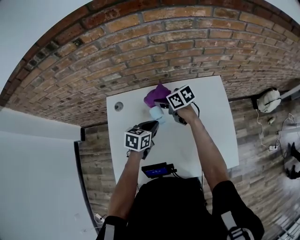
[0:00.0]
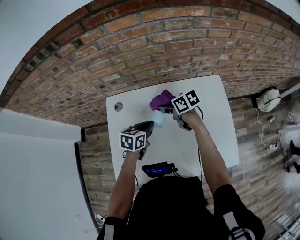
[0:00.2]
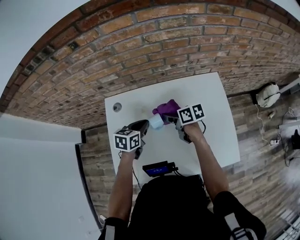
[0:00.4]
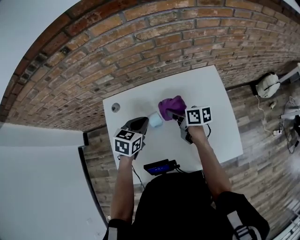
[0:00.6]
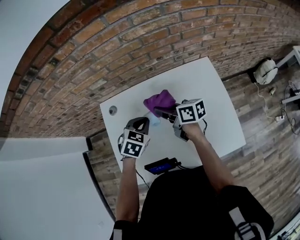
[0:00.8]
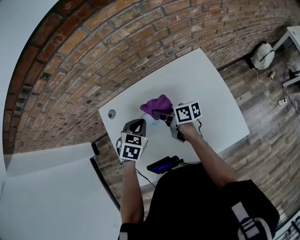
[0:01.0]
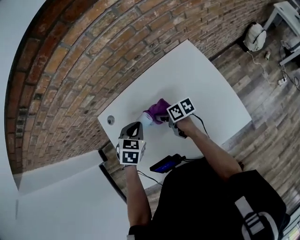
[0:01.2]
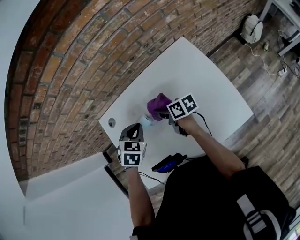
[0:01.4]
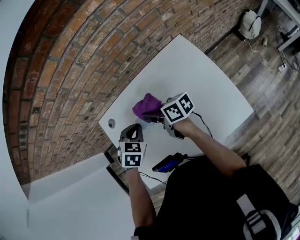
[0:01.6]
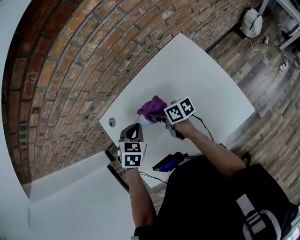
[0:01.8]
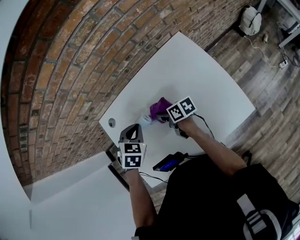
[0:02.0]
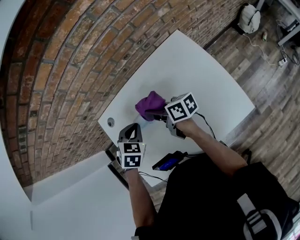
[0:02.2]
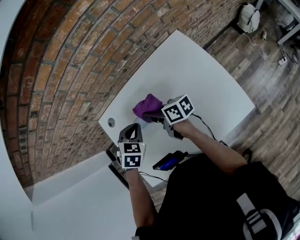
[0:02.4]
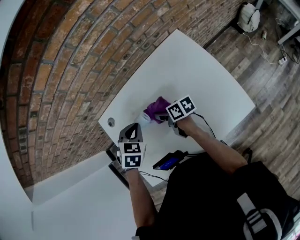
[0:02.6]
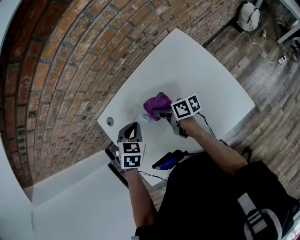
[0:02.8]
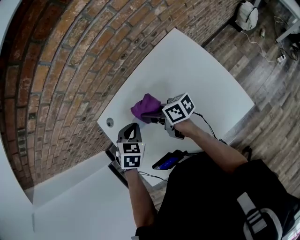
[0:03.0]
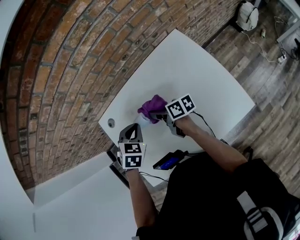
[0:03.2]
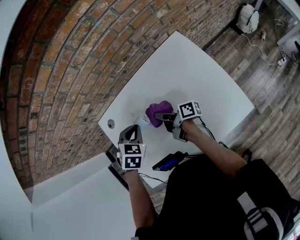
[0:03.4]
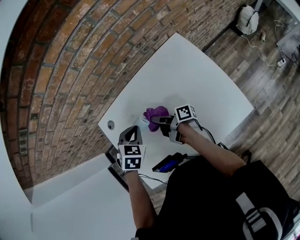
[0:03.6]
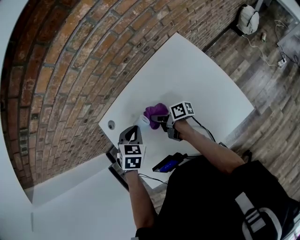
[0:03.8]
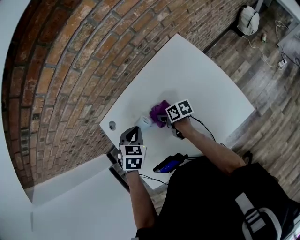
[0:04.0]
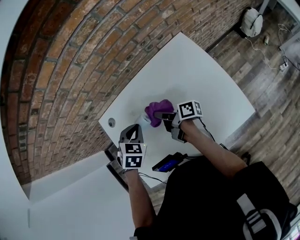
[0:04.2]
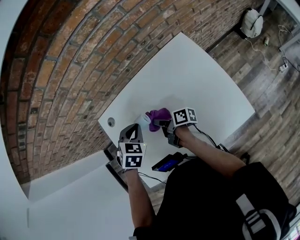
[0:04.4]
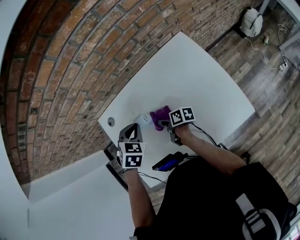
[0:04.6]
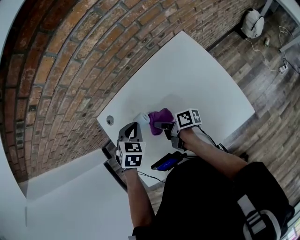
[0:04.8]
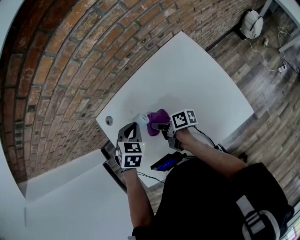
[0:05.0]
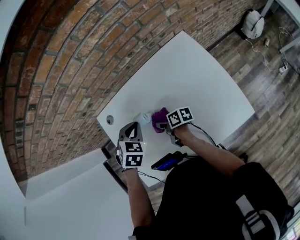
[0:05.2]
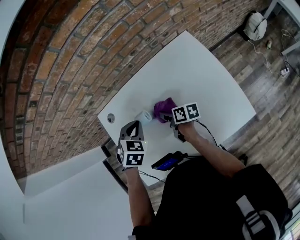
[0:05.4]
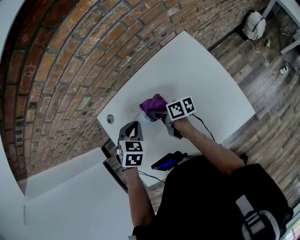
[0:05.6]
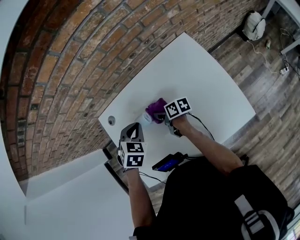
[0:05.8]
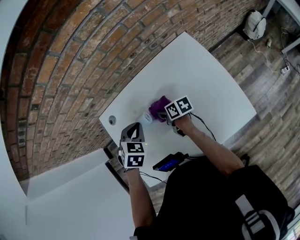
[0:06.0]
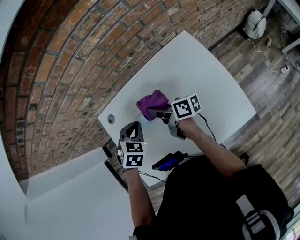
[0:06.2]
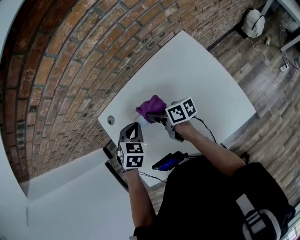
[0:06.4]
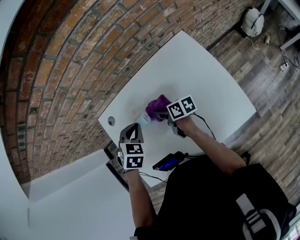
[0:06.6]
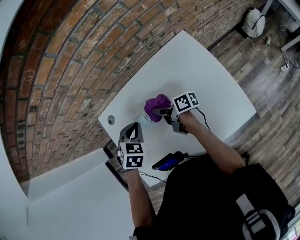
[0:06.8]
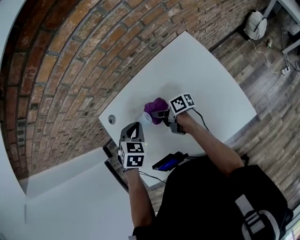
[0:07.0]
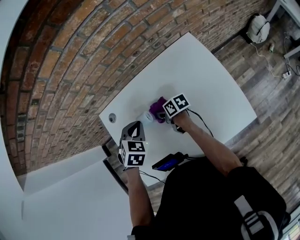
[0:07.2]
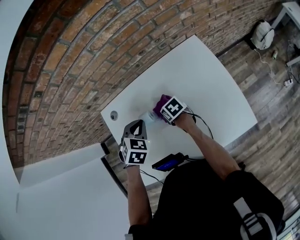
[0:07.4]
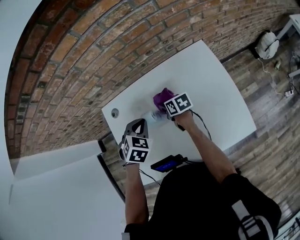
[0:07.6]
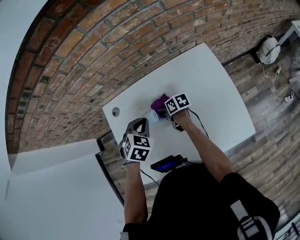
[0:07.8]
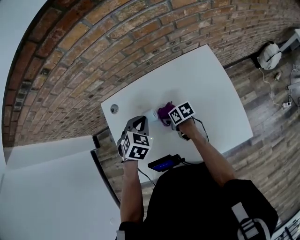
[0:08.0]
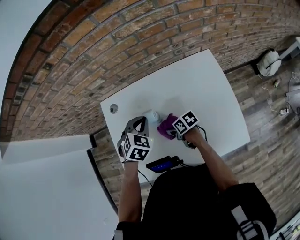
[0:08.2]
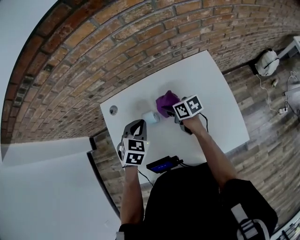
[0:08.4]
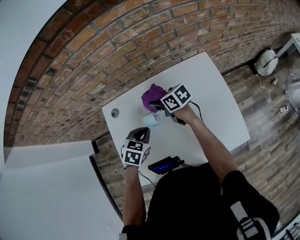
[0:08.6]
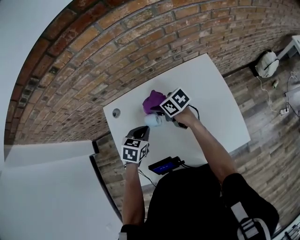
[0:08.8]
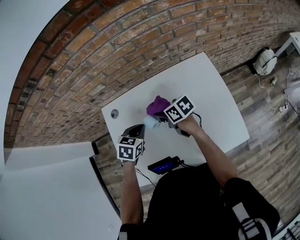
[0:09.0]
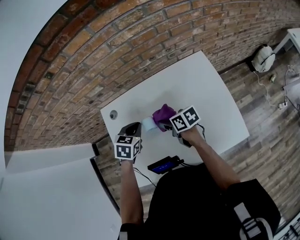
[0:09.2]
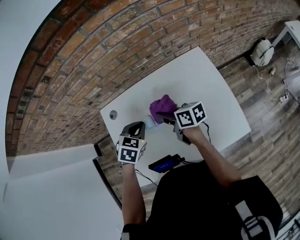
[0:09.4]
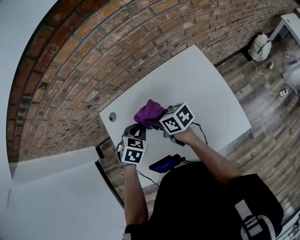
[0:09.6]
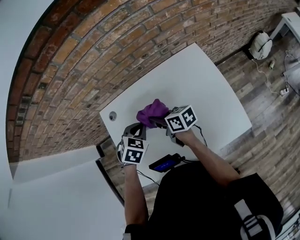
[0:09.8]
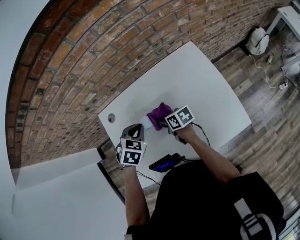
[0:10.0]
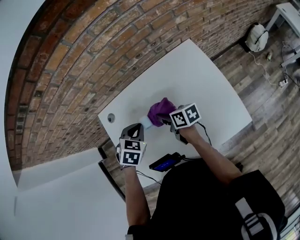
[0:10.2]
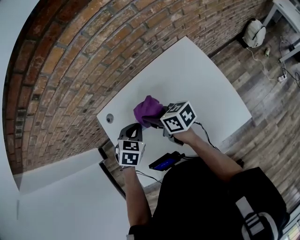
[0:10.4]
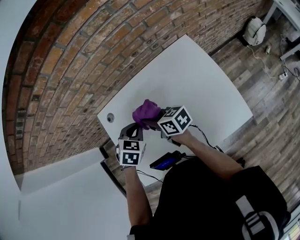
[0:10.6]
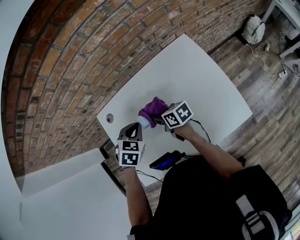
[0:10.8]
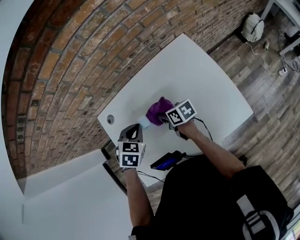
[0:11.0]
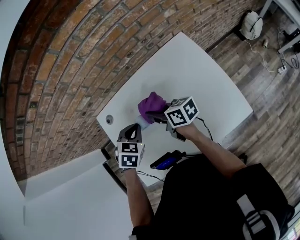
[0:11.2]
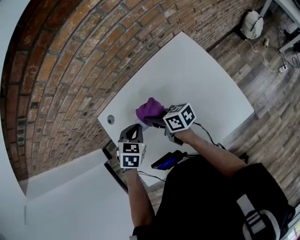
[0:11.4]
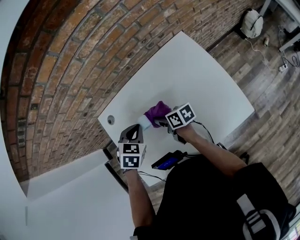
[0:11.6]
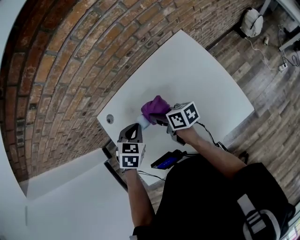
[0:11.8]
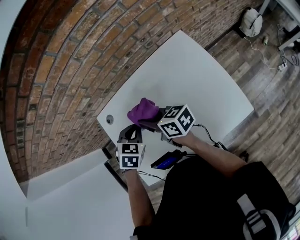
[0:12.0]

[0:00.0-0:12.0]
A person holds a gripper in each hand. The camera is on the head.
0:00.0 to 0:01.6: The right gripper swings up and down, about 10 cm each way, with 2 reversals, and rotates approximately 40 degrees; the left gripper turns by some 50 degrees.
0:01.6 to 0:03.0: The right gripper swings up and down, roughly 10 cm each way, with 3 reversals.
0:03.0 to 0:04.4: The right gripper travels downward by roughly 10 cm, and changes its angle by about 30 degrees.
0:04.4 to 0:06.0: The right gripper goes up and down, roughly 10 cm each way, reversing 4 times, and swivels about 40 degrees.
0:06.0 to 0:07.6: The right gripper moves some 10 cm upward and comes back.
0:07.6 to 0:09.0: The left gripper swivels roughly 20 degrees, while the right gripper swings forward and backward, roughly 15 cm each way, with 2 reversals.
0:09.0 to 0:10.4: The left gripper swivels about 20 degrees. The right gripper swings up and down, approximately 10 cm each way, with 2 reversals, and changes its angle by about 20 degrees.
0:10.4 to 0:12.0: The right gripper goes up and down, some 15 cm each way, reversing 3 times.

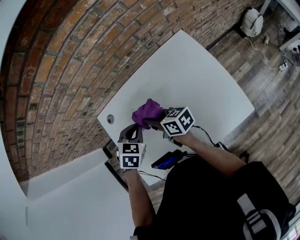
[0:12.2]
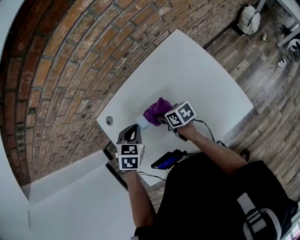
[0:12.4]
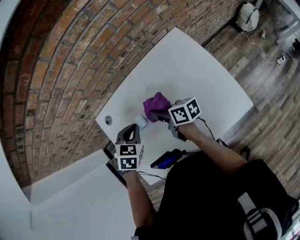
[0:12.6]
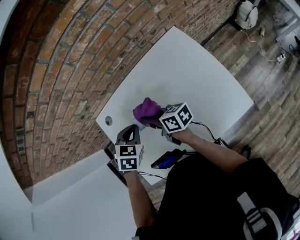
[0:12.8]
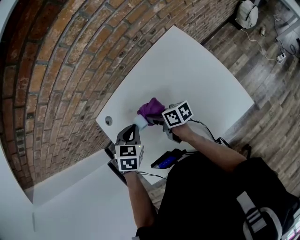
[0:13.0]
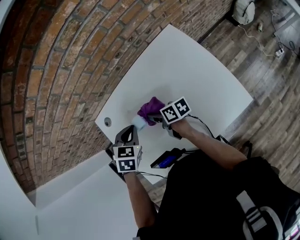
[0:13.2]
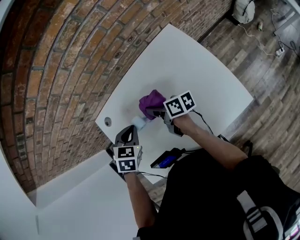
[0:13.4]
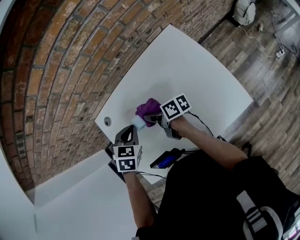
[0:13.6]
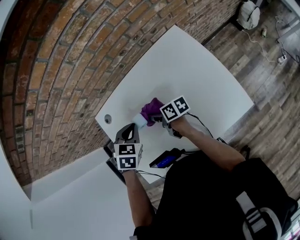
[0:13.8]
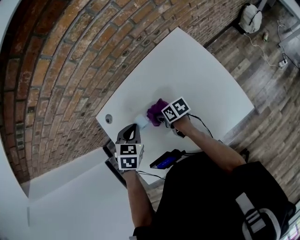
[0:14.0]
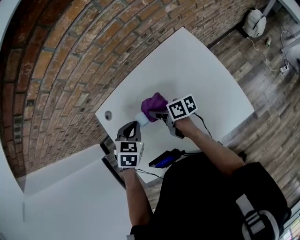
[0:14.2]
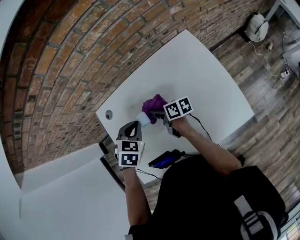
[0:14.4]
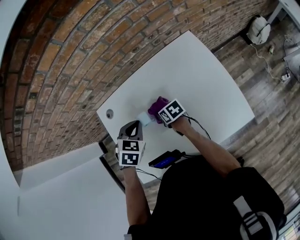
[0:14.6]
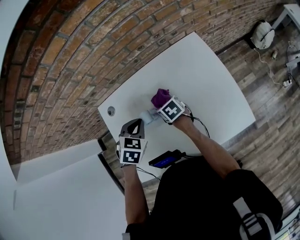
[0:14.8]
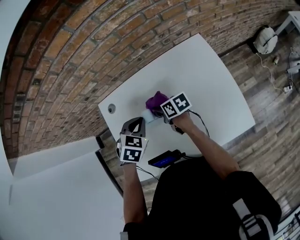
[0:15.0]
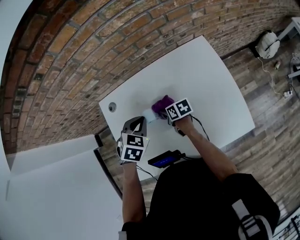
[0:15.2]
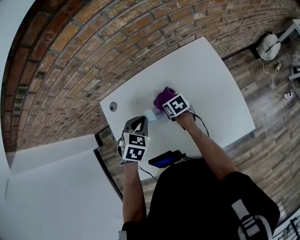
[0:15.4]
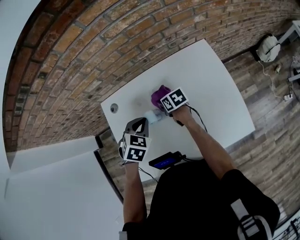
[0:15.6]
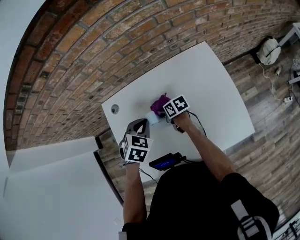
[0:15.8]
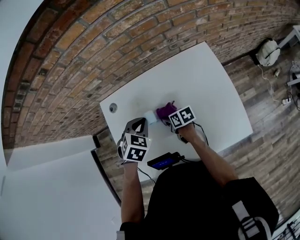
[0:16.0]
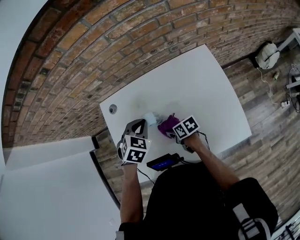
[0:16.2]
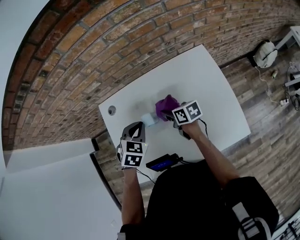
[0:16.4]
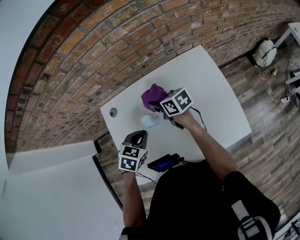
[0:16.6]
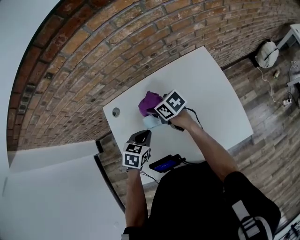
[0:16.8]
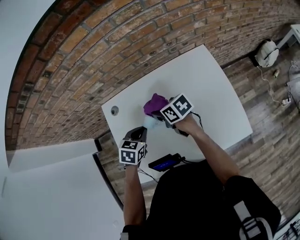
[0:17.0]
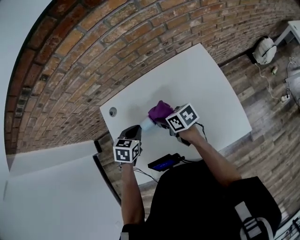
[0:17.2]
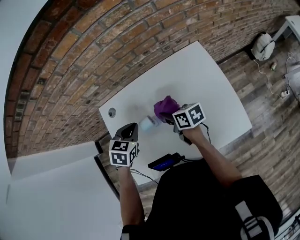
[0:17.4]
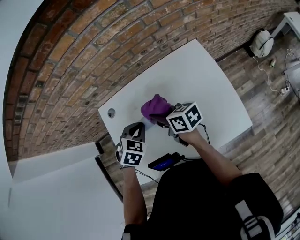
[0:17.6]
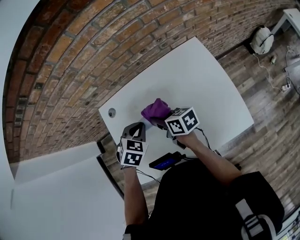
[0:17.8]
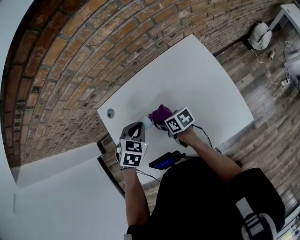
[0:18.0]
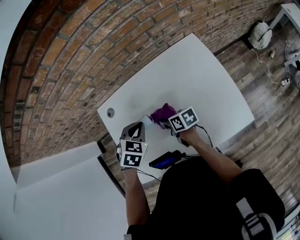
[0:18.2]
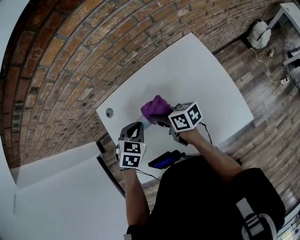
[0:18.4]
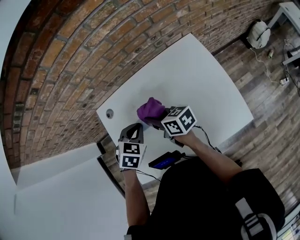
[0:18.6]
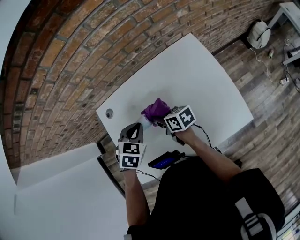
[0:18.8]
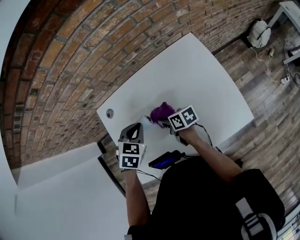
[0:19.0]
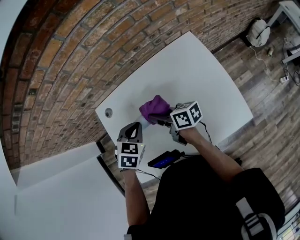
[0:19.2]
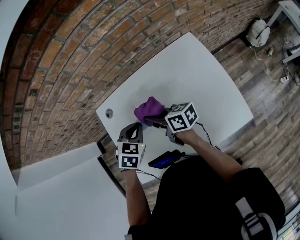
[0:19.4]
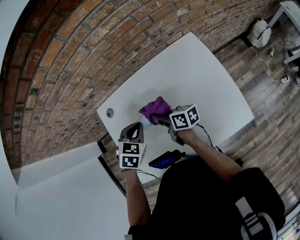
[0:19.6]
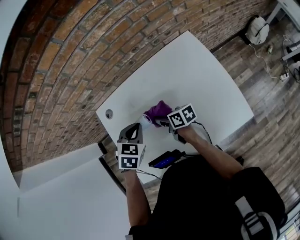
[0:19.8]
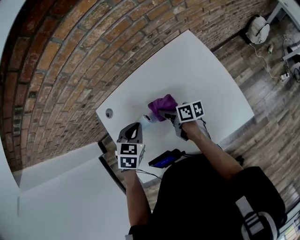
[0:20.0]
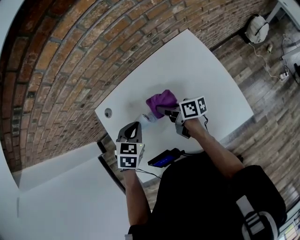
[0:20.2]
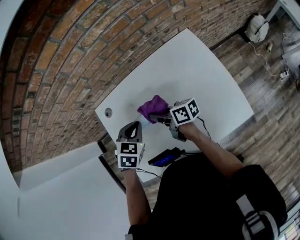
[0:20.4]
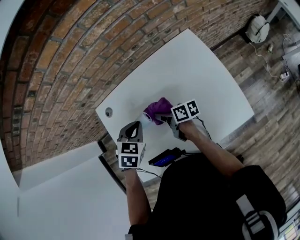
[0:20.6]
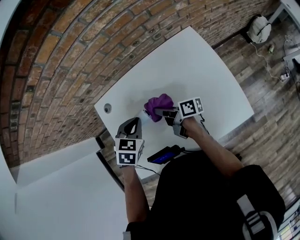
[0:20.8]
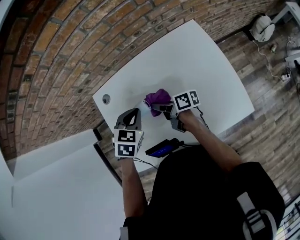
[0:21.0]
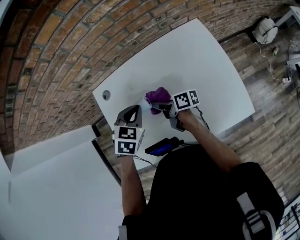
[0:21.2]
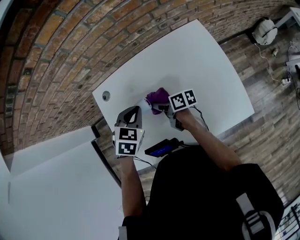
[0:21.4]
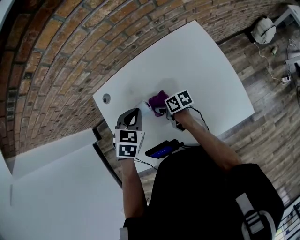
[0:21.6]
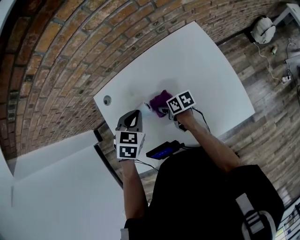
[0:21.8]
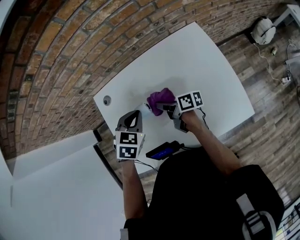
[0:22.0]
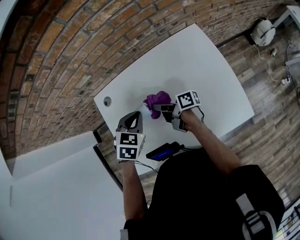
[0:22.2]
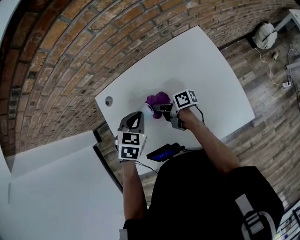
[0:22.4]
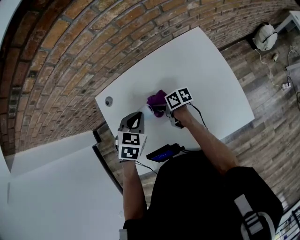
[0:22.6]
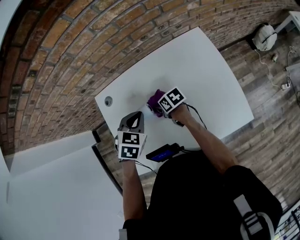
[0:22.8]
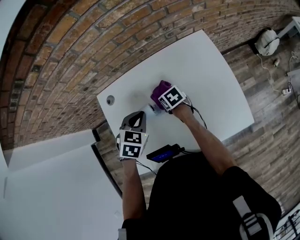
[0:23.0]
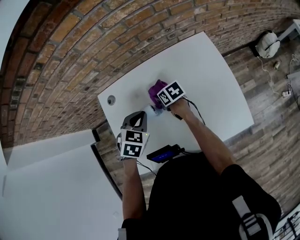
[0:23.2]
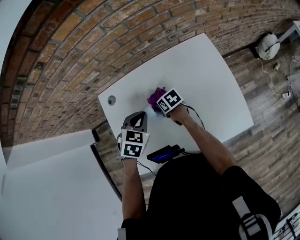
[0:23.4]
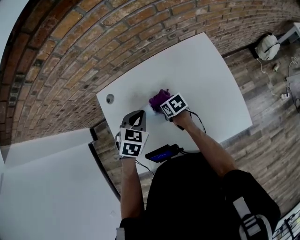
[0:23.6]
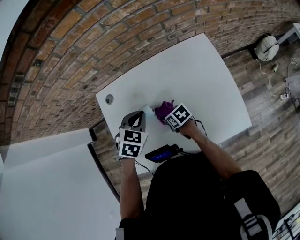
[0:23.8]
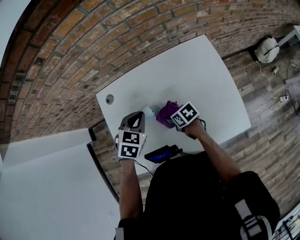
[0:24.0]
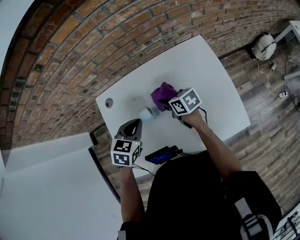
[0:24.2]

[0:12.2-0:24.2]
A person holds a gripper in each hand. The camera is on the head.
0:12.2 to 0:13.8: The right gripper moves up and down over approximately 10 cm, changing direction 2 times, and swivels about 20 degrees.
0:13.8 to 0:15.2: The right gripper goes up and down, roughly 10 cm each way, reversing 3 times, and changes its angle by some 20 degrees.
0:15.2 to 0:16.6: The right gripper goes forward and backward, roughly 15 cm each way, reversing 2 times, and turns by some 20 degrees.
0:16.6 to 0:18.2: The right gripper moves backward and downward, approximately 15 cm, and changes its angle by approximately 20 degrees.
0:18.2 to 0:19.8: The right gripper goes up and down, roughly 10 cm each way, reversing 3 times.
0:21.2 to 0:22.6: The right gripper moves up and down over about 5 cm, changing direction 2 times.
0:22.6 to 0:24.2: The right gripper moves forward and backward over about 10 cm, changing direction 2 times, and rotates roughly 30 degrees.
